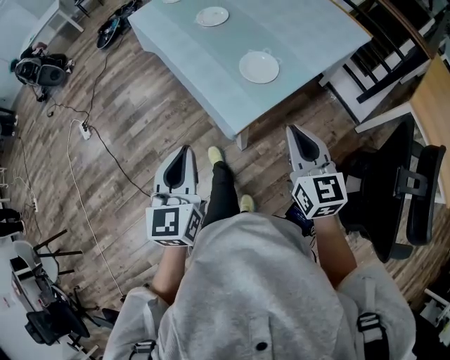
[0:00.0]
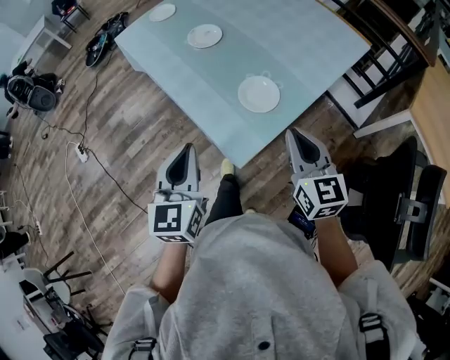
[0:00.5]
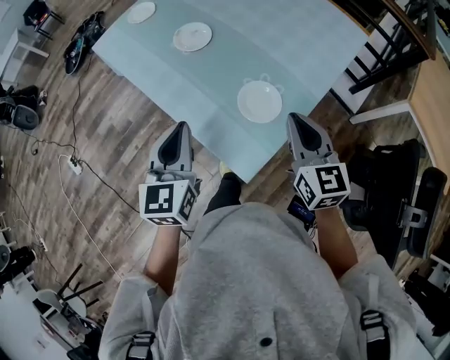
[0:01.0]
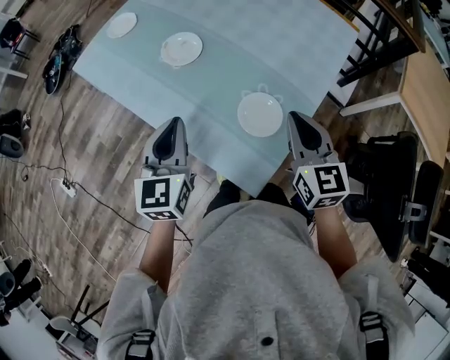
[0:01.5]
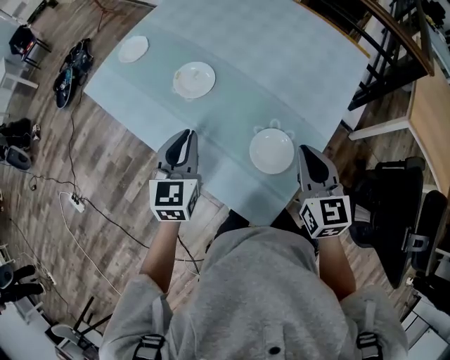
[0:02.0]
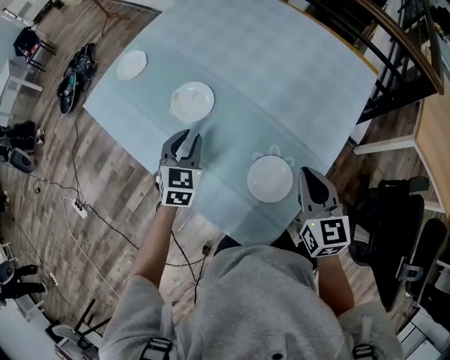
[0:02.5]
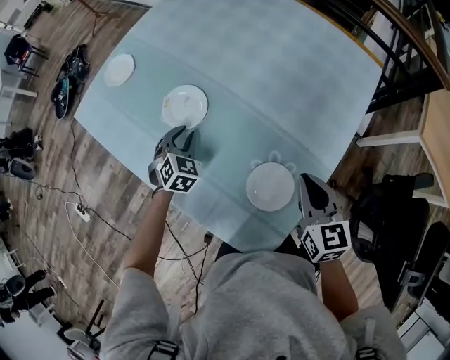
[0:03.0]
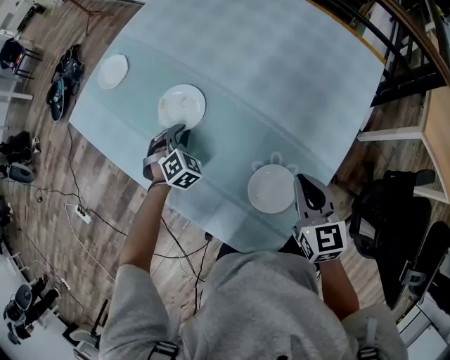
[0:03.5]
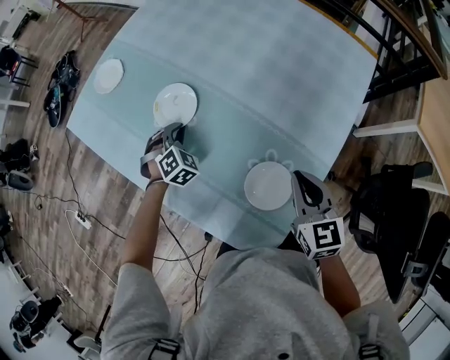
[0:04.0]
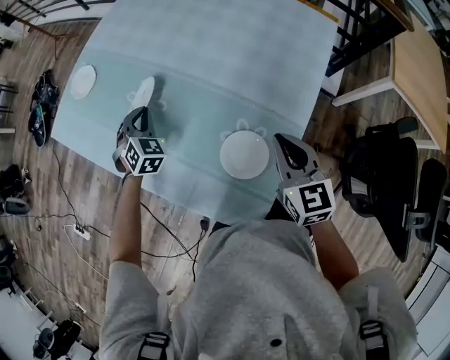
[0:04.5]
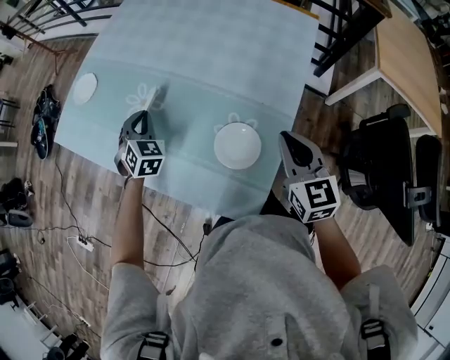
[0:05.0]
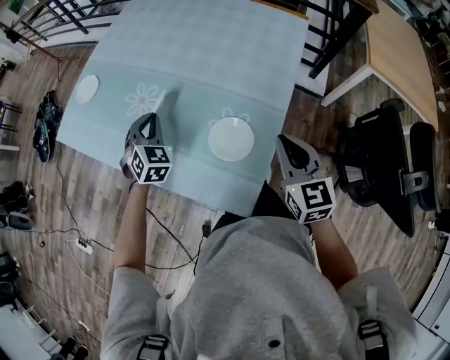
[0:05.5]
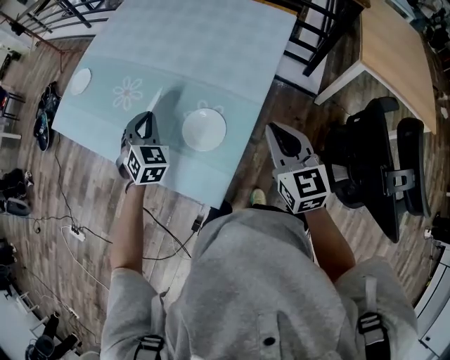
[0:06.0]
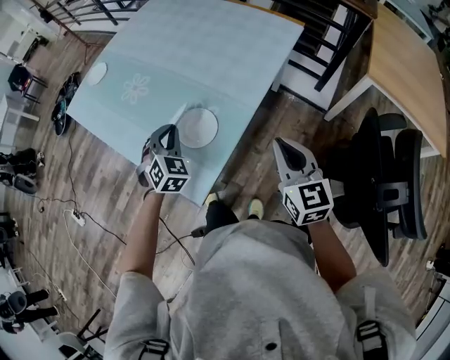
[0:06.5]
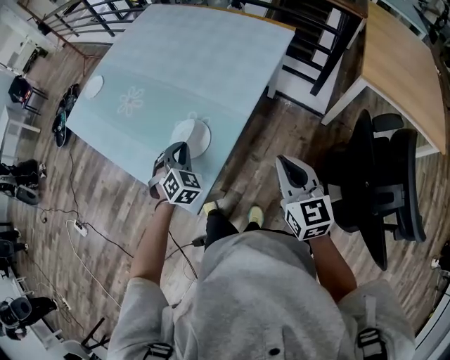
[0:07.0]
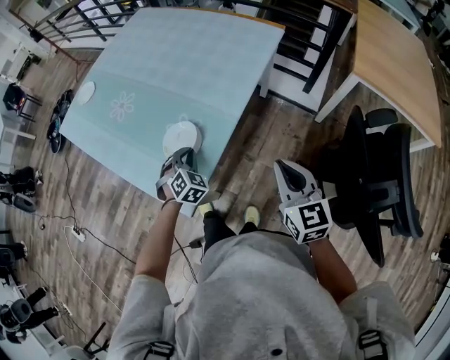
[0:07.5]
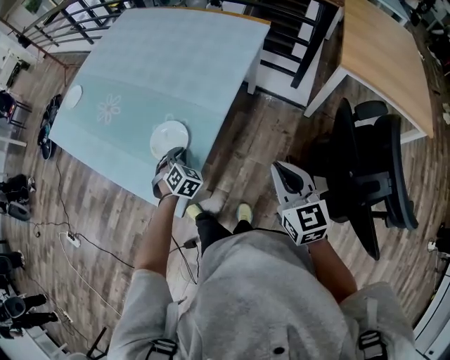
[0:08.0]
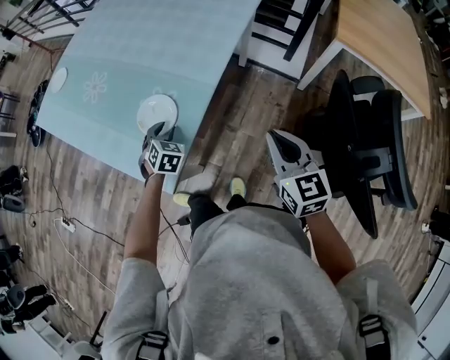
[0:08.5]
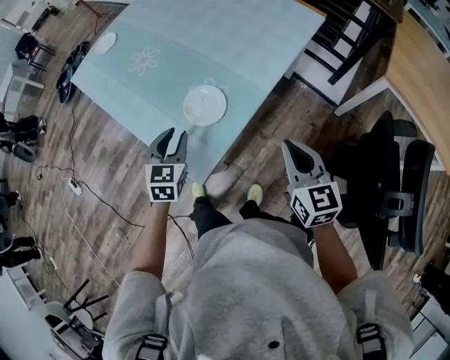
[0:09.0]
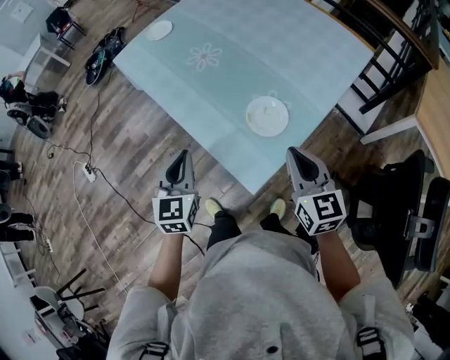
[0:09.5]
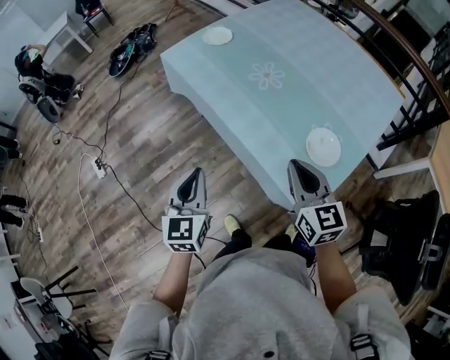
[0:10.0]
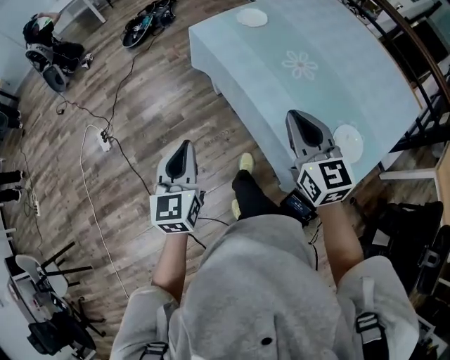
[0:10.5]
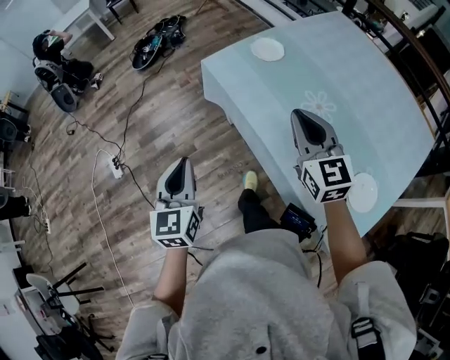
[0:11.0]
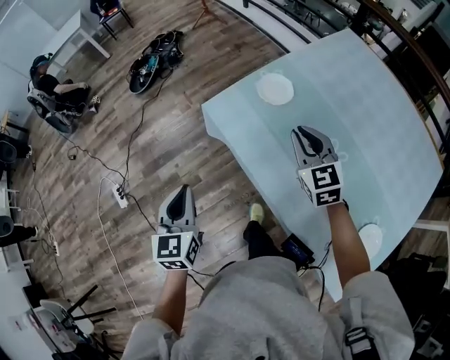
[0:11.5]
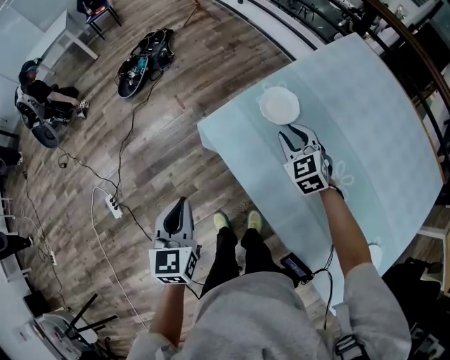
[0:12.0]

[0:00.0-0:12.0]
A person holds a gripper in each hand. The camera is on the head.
0:00.0 to 0:02.0: The left gripper is displaced forward by some 40 cm, and changes its angle by approximately 20 degrees. Meanwhile the right gripper goes some 30 cm forward, and changes its angle by approximately 20 degrees.
0:02.0 to 0:04.0: The right gripper shifts some 10 cm downward and forward; the left gripper is displaced downward and forward by about 25 cm, and rotates around the line of its fingers by roughly 50 degrees, clockwise from behind.
0:04.0 to 0:06.0: The left gripper travels upward, backward and to the right by some 25 cm, and swivels roughly 20 degrees. Meanwhile the right gripper goes some 20 cm backward, to the right and upward.
0:06.0 to 0:08.0: The left gripper is displaced downward, to the right and backward by roughly 25 cm. Meanwhile the right gripper heads to the right and backward, covering roughly 15 cm.
0:08.0 to 0:10.0: Both grippers are carried to the left, some 40 cm. The left gripper goes roughly 20 cm upward, twists approximately 50 degrees counterclockwise, seen from behind, and opens and closes again; the right gripper changes its angle by roughly 20 degrees.
0:10.0 to 0:12.0: The two grippers travel together, forward, roughly 50 cm. The right gripper changes its angle by about 40 degrees.

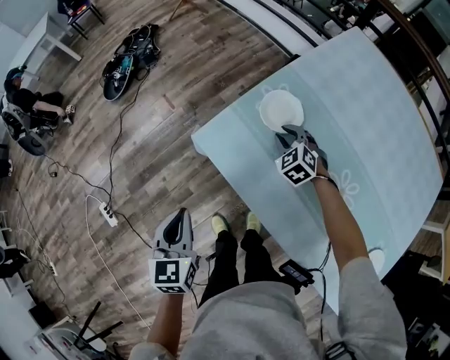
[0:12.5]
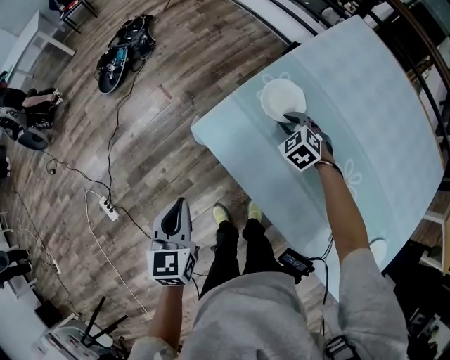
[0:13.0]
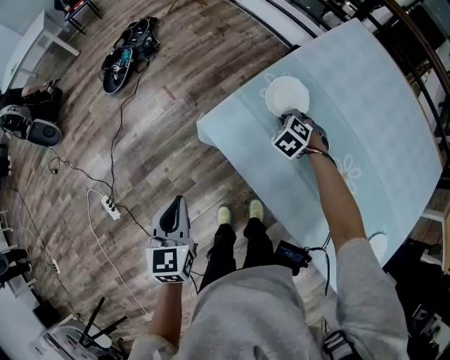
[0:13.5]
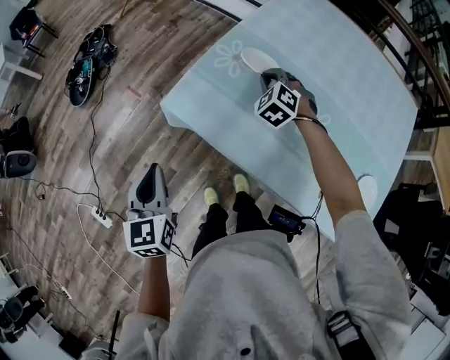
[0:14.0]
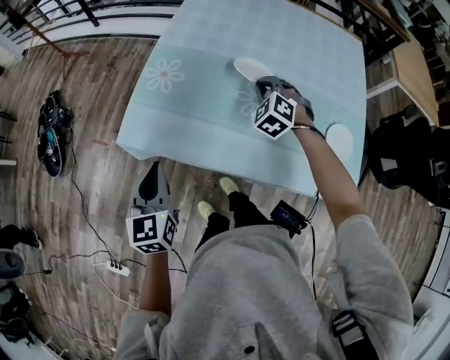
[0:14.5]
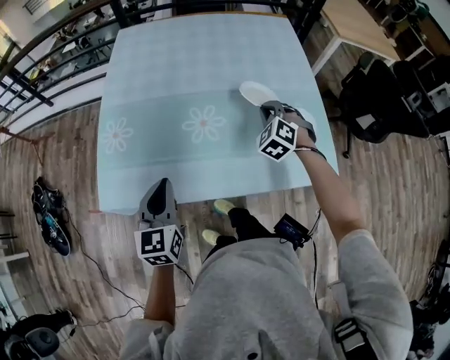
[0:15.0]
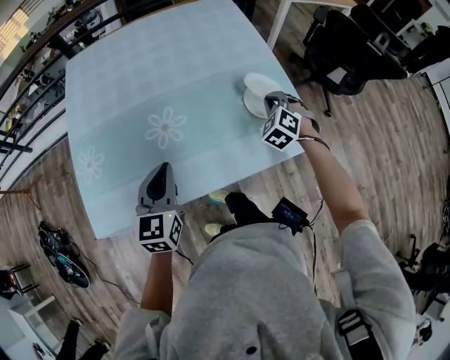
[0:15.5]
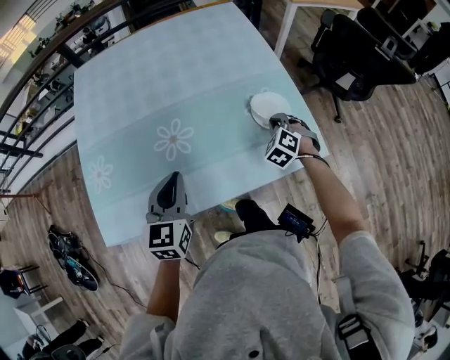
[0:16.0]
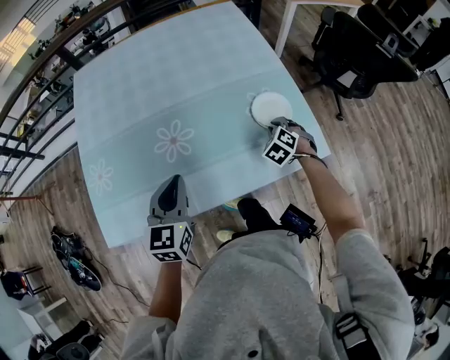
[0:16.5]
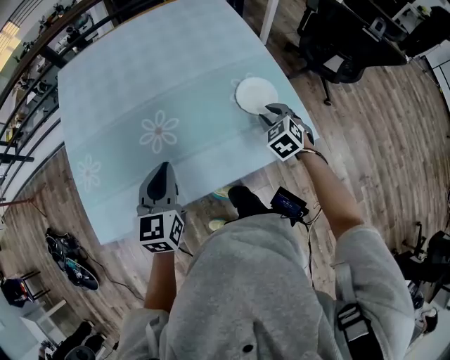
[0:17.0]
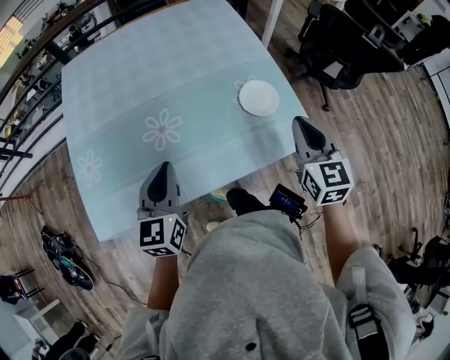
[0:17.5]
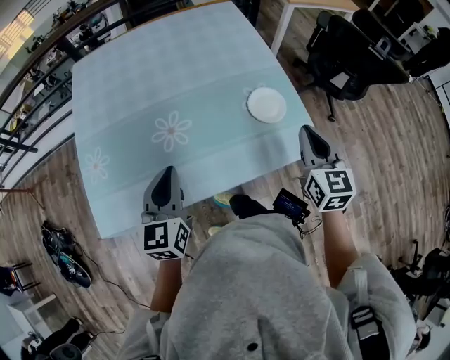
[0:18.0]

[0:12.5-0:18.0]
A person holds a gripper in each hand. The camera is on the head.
0:12.5 to 0:14.5: The left gripper moves about 10 cm, and rotates some 30 degrees; the right gripper moves roughly 30 cm, and swivels approximately 30 degrees.
0:14.5 to 0:16.0: The left gripper moves roughly 30 cm, and rotates roughly 40 degrees. The right gripper changes place by about 40 cm, and turns by approximately 40 degrees.
0:16.0 to 0:18.0: The right gripper goes some 25 cm upward and backward, twists approximately 50 degrees clockwise, seen from behind, and opens, then closes again.

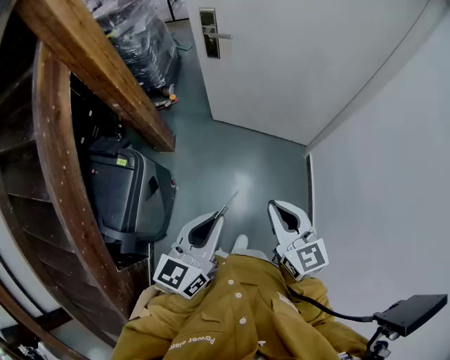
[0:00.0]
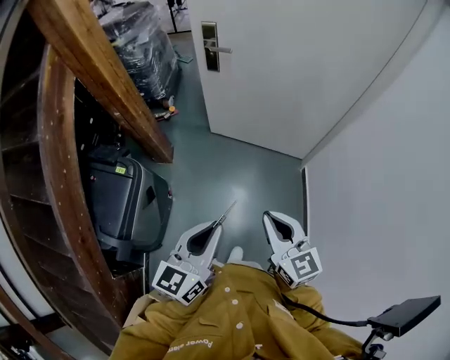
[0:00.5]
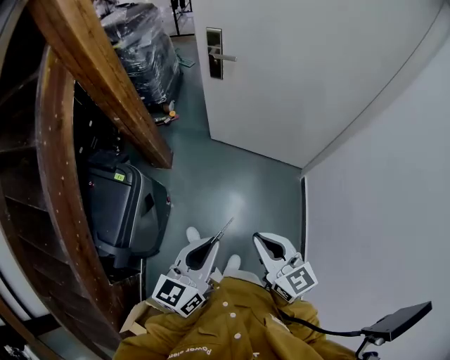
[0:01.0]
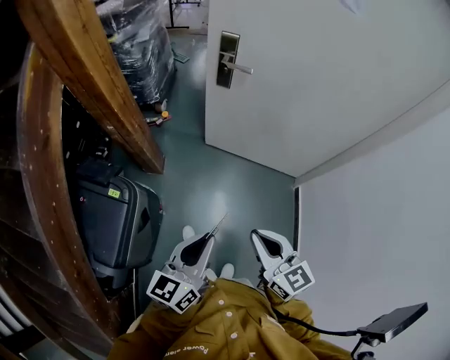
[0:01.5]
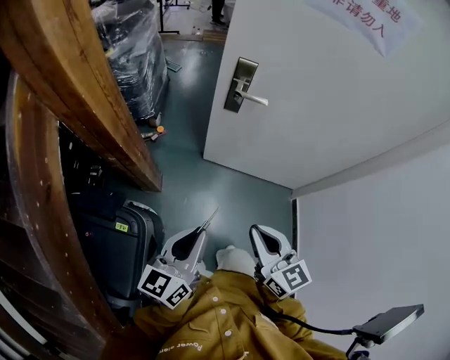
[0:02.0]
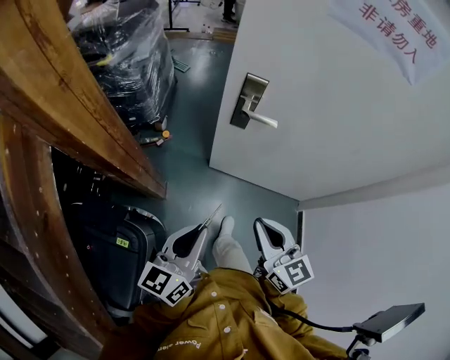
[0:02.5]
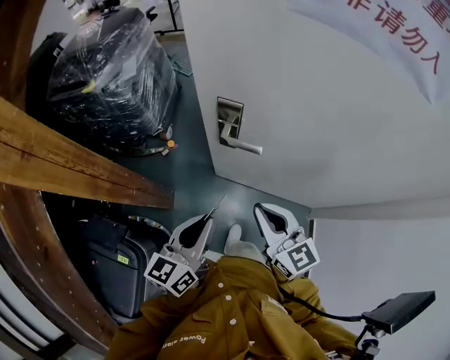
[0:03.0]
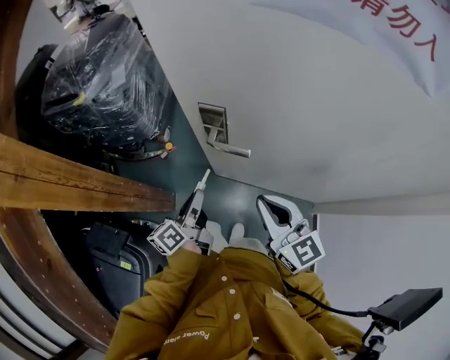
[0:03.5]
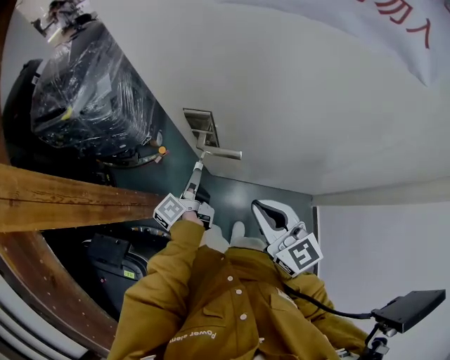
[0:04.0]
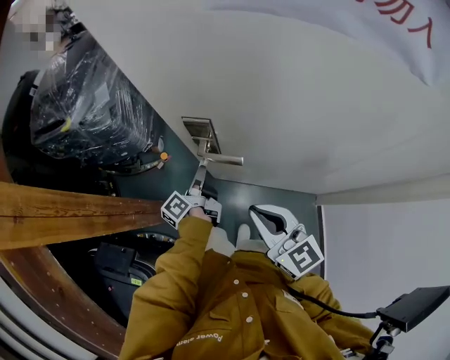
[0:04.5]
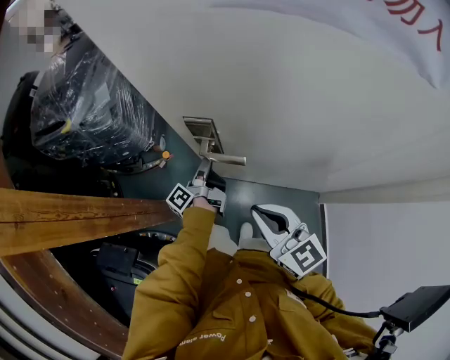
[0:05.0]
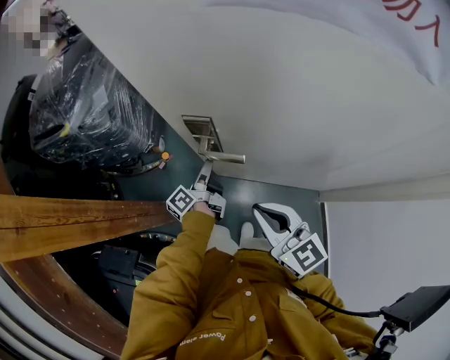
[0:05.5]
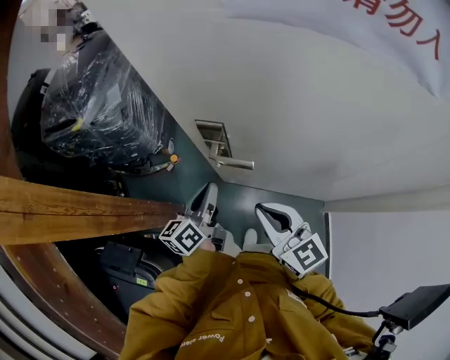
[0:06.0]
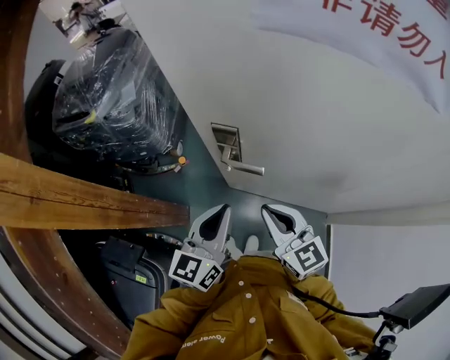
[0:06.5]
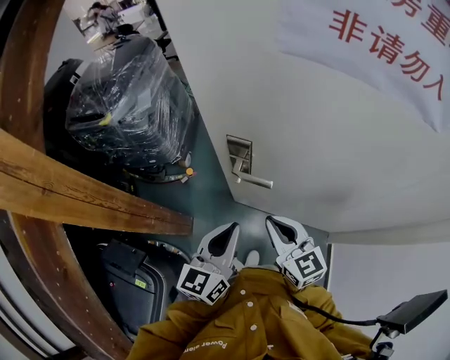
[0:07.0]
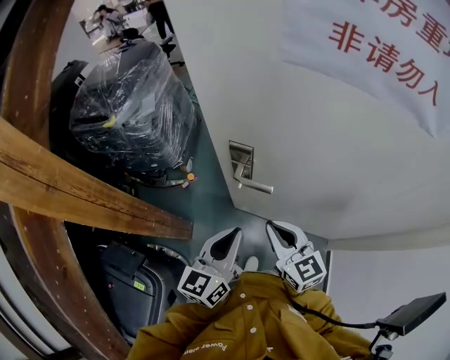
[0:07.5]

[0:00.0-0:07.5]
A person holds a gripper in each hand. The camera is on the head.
0:00.0 to 0:02.0: Both grippers move forward and to the left, about 30 cm.
0:02.0 to 0:04.0: The right gripper moves forward and to the right, roughly 35 cm; the left gripper heads forward, covering some 40 cm, and twists about 50 degrees counterclockwise, seen from behind.
0:04.0 to 0:05.5: The left gripper shifts by some 5 cm.
0:05.5 to 0:07.5: The left gripper travels upward and backward by roughly 25 cm, twists about 60 degrees clockwise, seen from behind, and closes up.

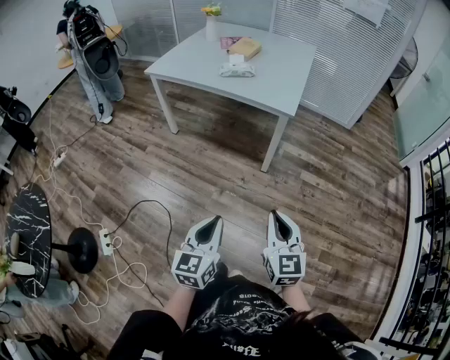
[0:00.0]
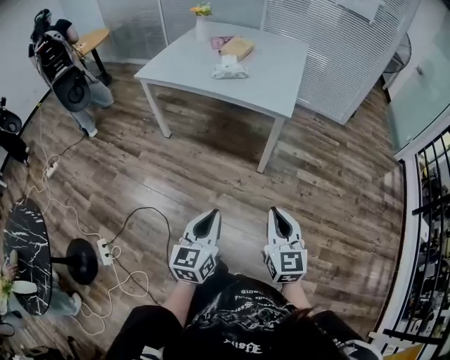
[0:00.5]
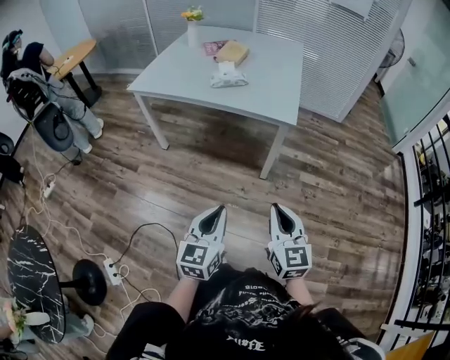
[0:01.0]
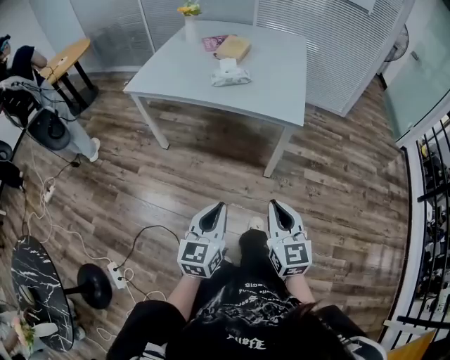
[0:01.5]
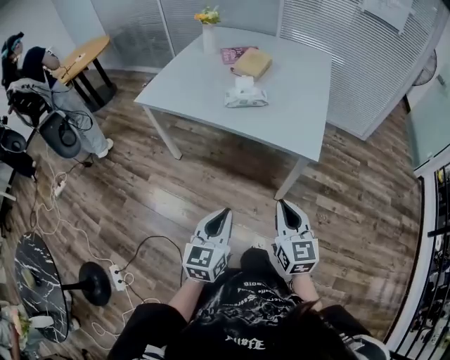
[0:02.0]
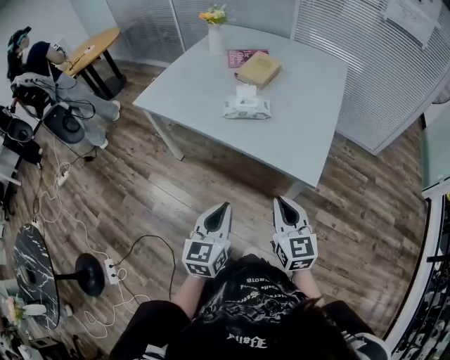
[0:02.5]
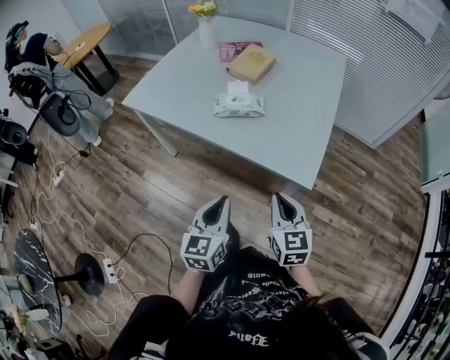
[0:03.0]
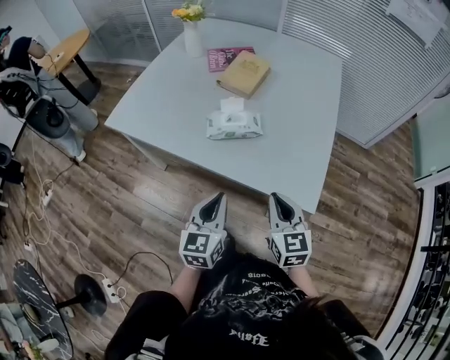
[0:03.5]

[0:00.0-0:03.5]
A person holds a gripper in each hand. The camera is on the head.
0:00.0 to 0:02.0: The grippers both shift forward by roughly 30 cm.
0:02.0 to 0:03.5: Both grippers travel together forward, about 30 cm.
